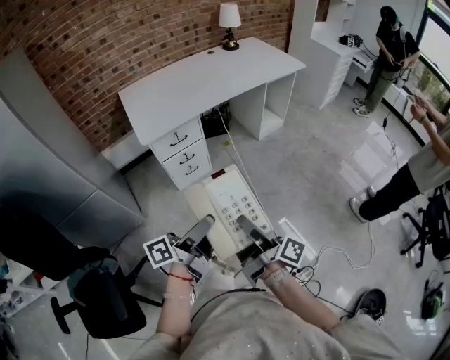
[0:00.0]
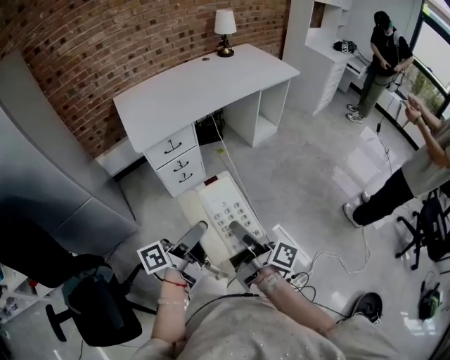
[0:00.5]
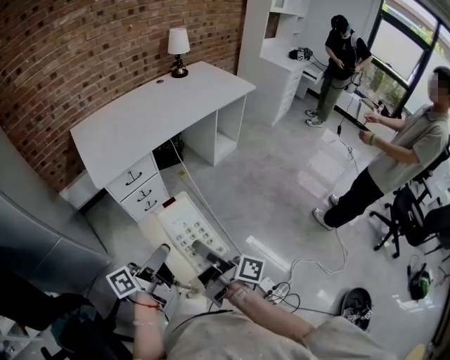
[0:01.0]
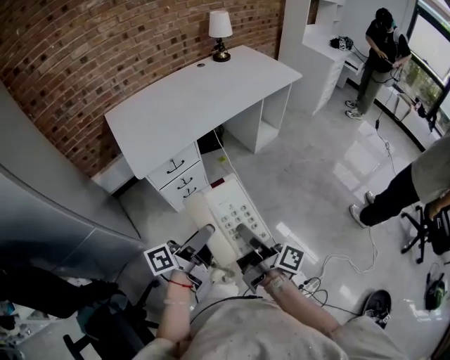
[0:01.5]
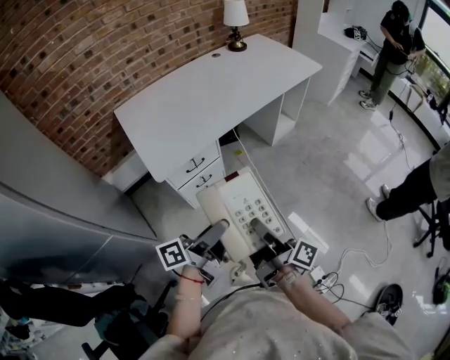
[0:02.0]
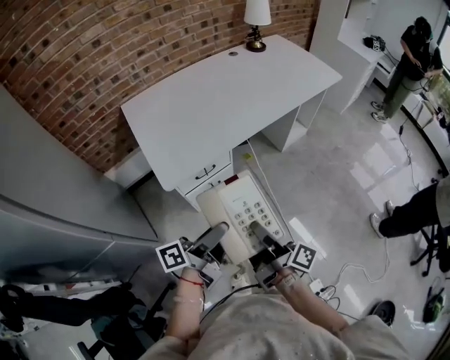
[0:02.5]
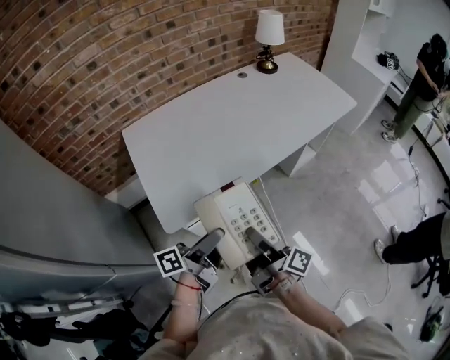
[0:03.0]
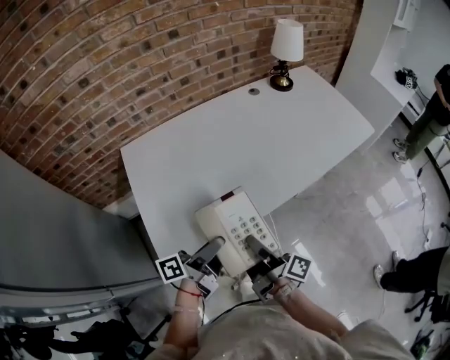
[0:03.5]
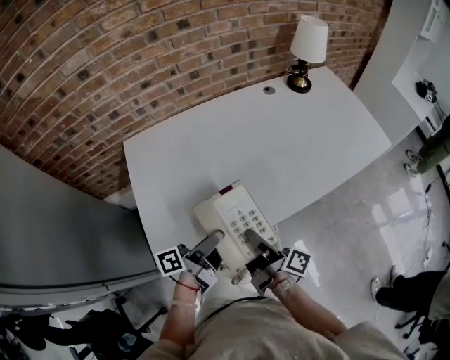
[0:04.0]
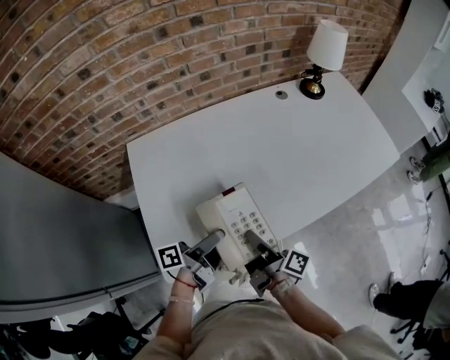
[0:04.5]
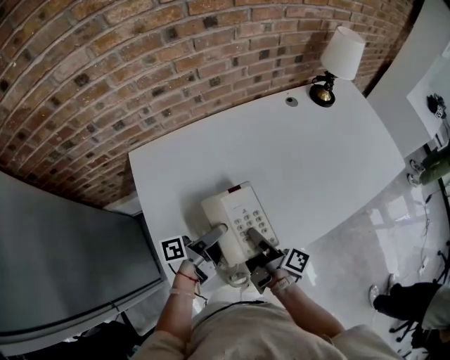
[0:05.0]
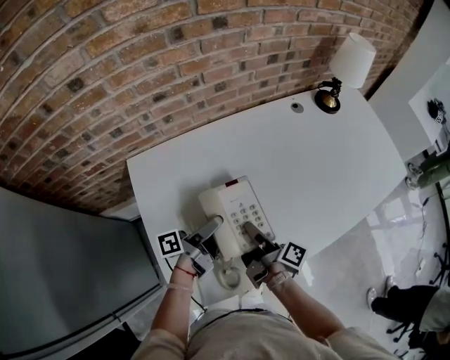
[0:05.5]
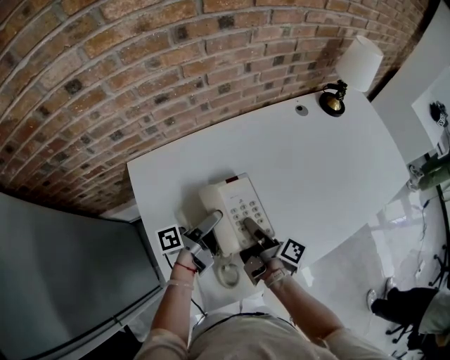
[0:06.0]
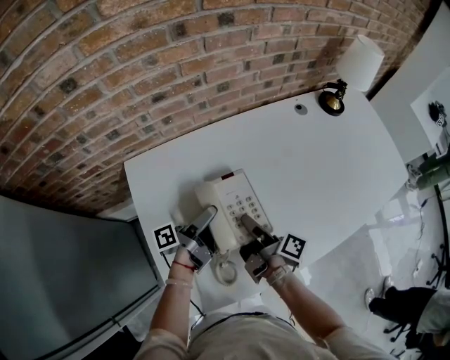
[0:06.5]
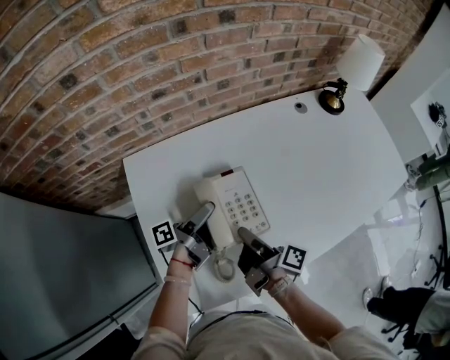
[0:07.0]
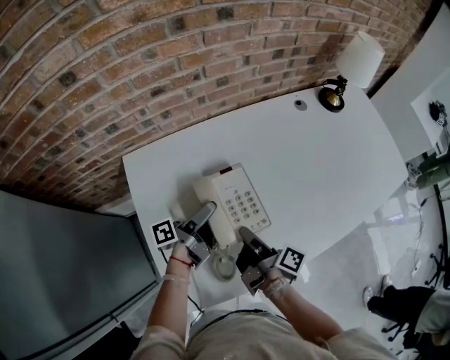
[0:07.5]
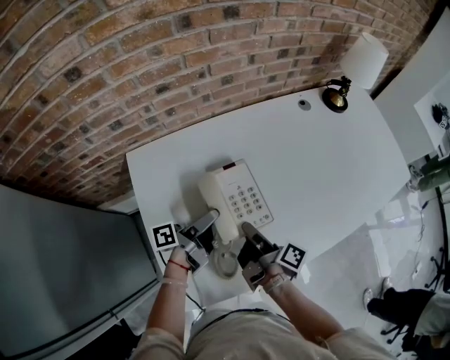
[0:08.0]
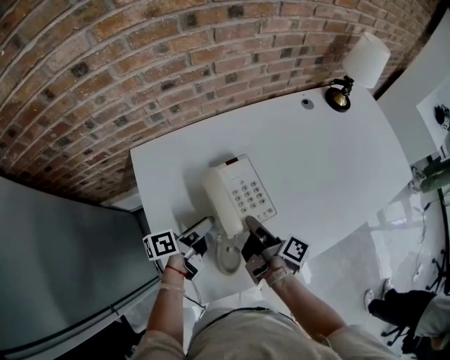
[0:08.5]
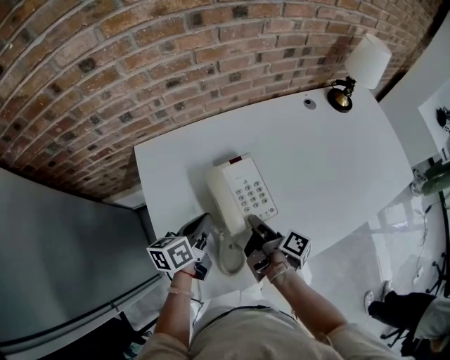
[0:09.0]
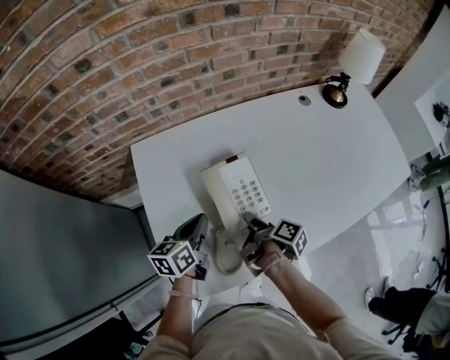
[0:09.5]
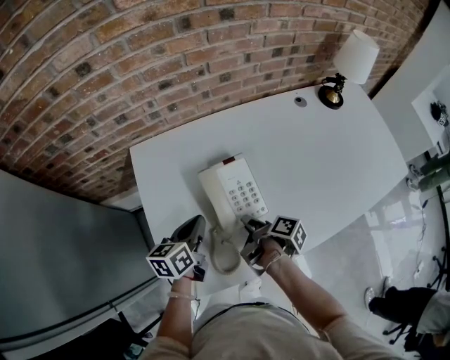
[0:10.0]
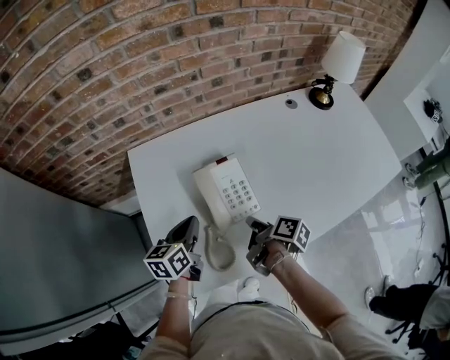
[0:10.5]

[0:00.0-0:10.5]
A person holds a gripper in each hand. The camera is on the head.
0:00.0 to 0:02.0: The left gripper moves roughly 20 cm.
0:02.0 to 0:04.0: The left gripper changes place by approximately 40 cm.
0:04.0 to 0:06.5: The left gripper moves roughly 25 cm.
0:06.5 to 0:08.5: The left gripper shifts by about 5 cm, swivels approximately 20 degrees, and closes its fingers.
0:08.5 to 0:10.5: The left gripper swivels roughly 40 degrees, and closes up.

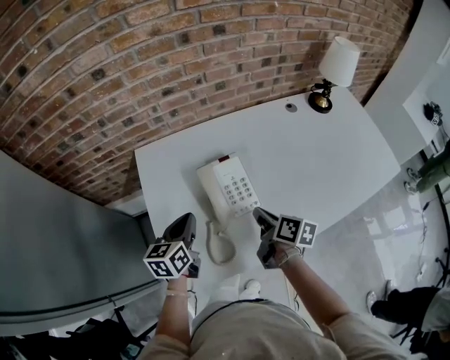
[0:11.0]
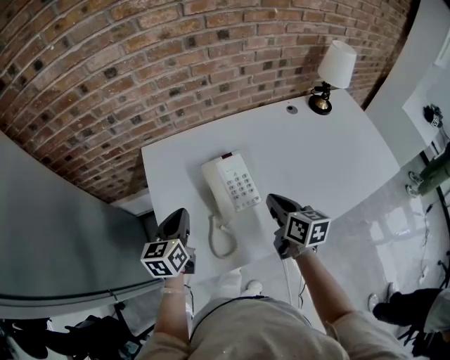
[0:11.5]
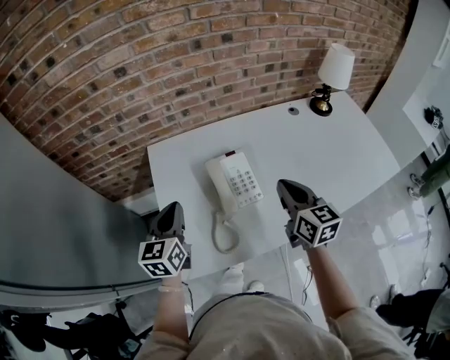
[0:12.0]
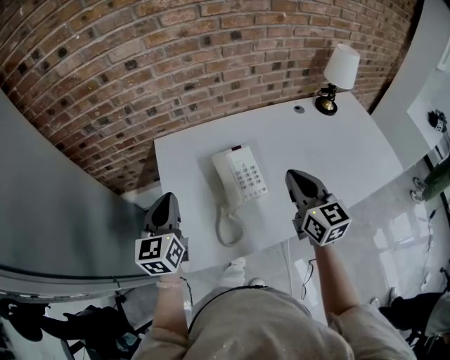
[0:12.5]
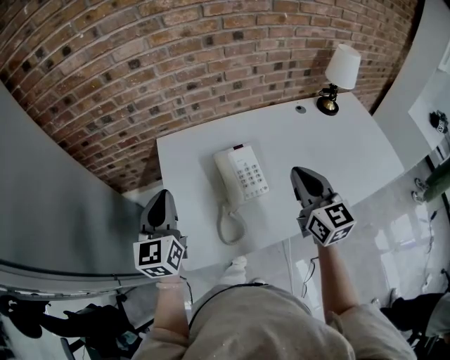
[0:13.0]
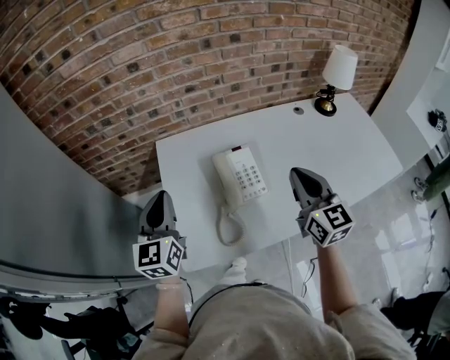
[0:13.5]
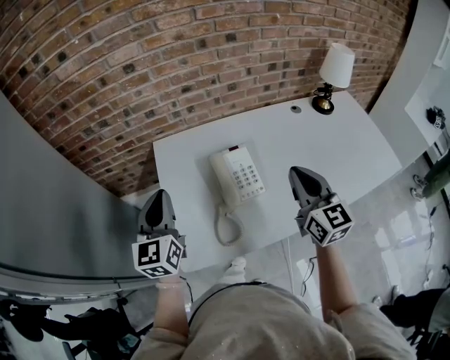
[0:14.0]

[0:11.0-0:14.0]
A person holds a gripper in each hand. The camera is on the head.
0:11.0 to 0:12.5: The left gripper heads upward, covering roughly 10 cm, and changes its angle by roughly 30 degrees.

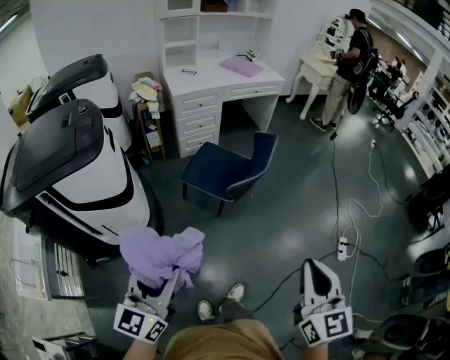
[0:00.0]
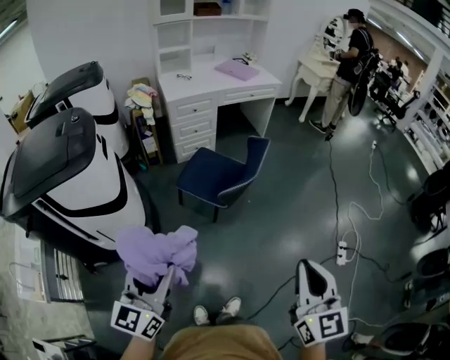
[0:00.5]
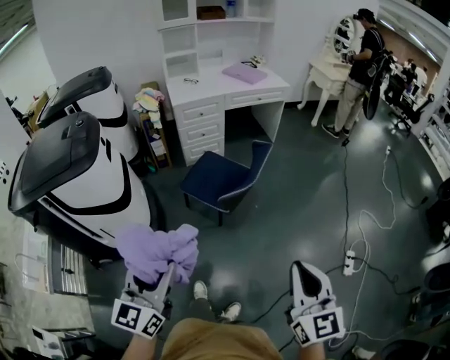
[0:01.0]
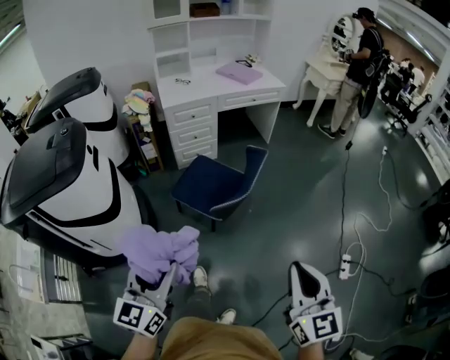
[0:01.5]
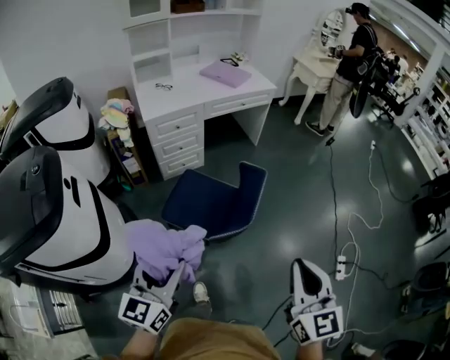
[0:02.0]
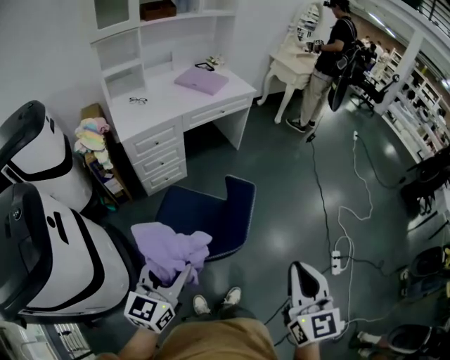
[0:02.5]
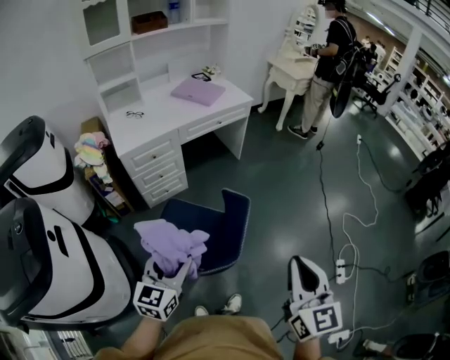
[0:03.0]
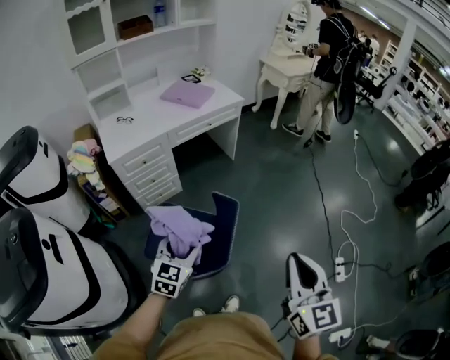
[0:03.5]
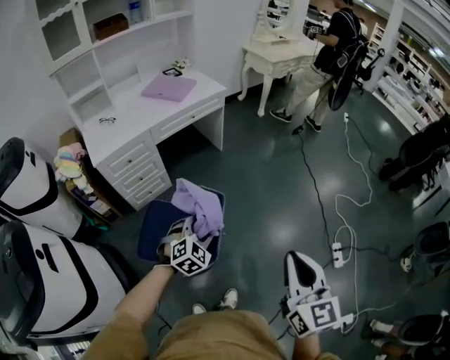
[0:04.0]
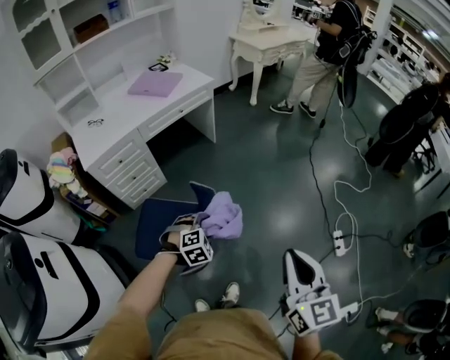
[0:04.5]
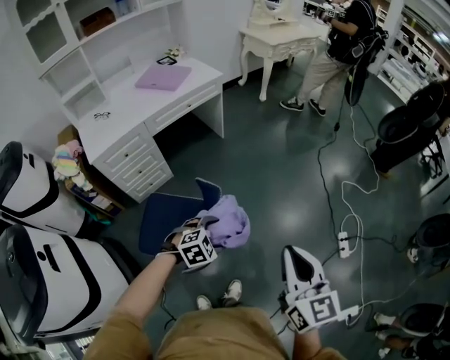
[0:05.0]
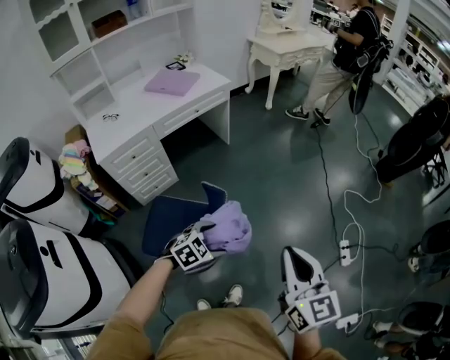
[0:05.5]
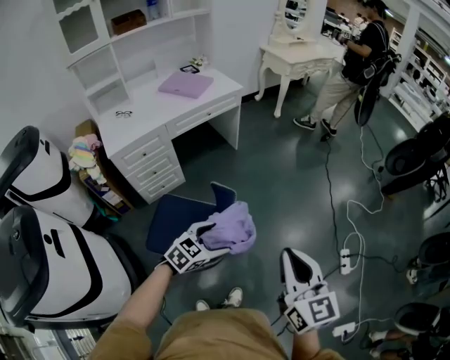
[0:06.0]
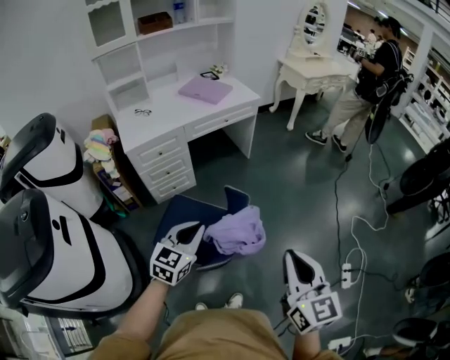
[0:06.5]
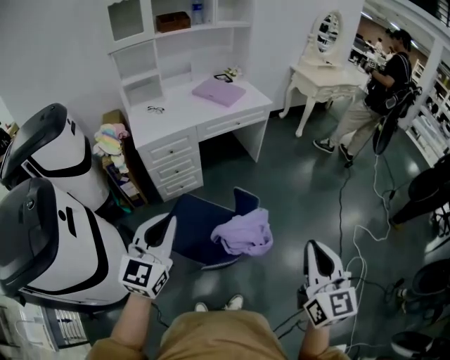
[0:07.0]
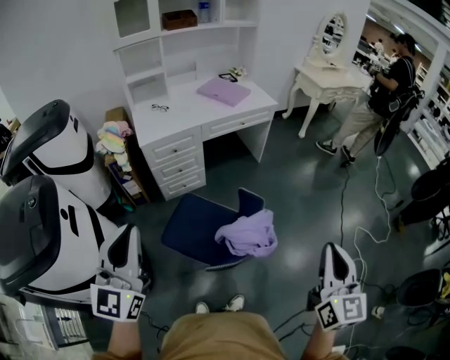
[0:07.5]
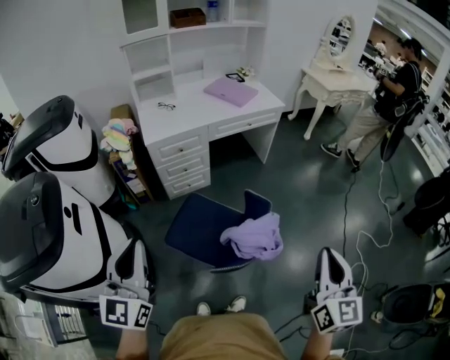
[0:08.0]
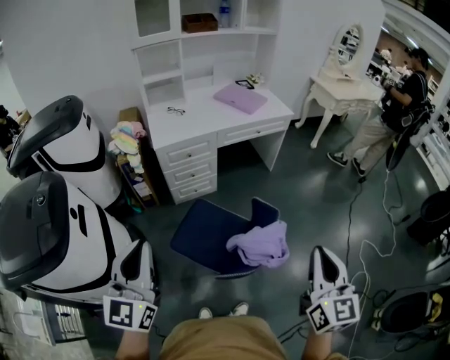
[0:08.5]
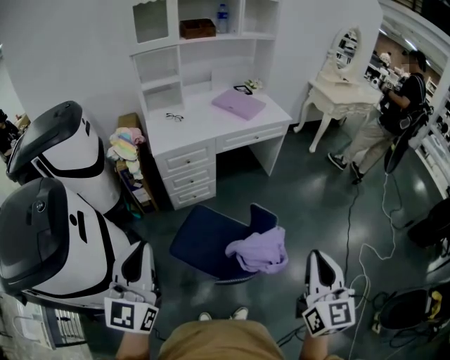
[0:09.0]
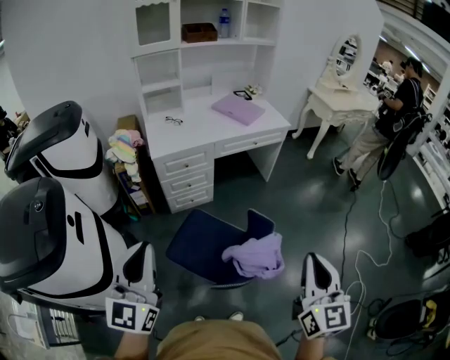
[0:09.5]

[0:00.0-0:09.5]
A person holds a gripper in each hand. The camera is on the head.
0:00.0 to 0:02.0: Both grippers travel together forward, some 35 cm.
0:02.0 to 0:04.0: The right gripper shifts approximately 20 cm forward and to the right. Meanwhile the left gripper is displaced forward, to the right and downward by roughly 40 cm, and tips its fingers downward by roughly 30 degrees.
0:04.0 to 0:05.5: The left gripper is displaced to the right and downward by some 10 cm, changes its angle by about 30 degrees, and opens.
0:05.5 to 0:07.5: The right gripper travels upward by some 10 cm. Meanwhile the left gripper goes approximately 35 cm upward, points its fingers approximately 60 degrees further upward, and closes.
0:07.5 to 0:09.5: The right gripper moves to the left and forward, about 10 cm.

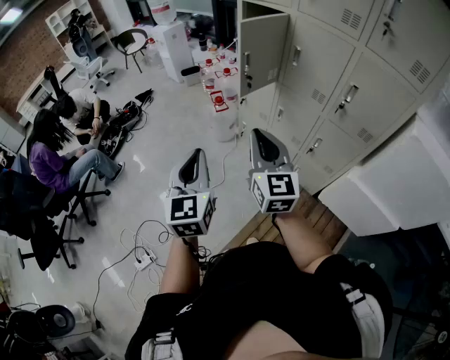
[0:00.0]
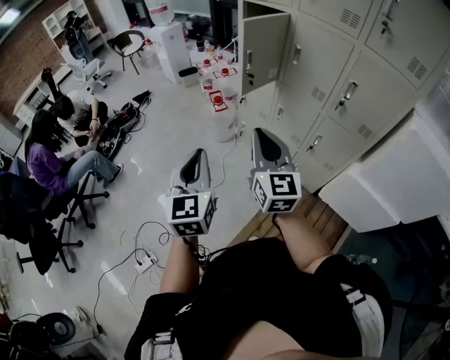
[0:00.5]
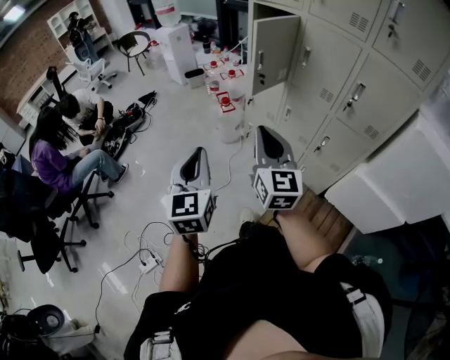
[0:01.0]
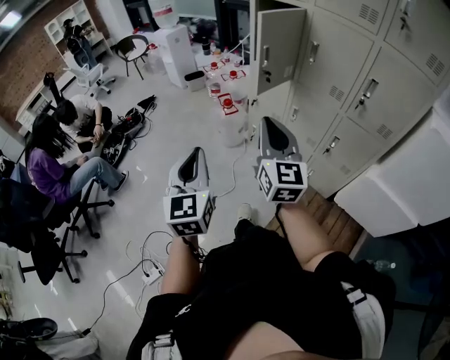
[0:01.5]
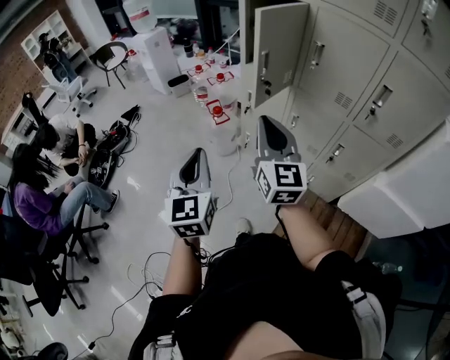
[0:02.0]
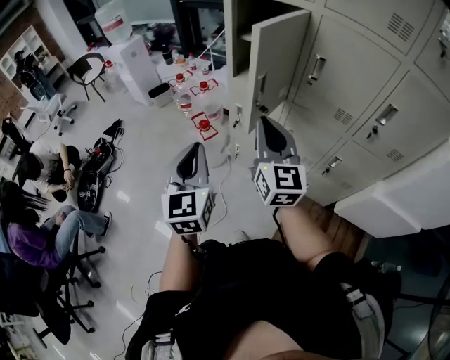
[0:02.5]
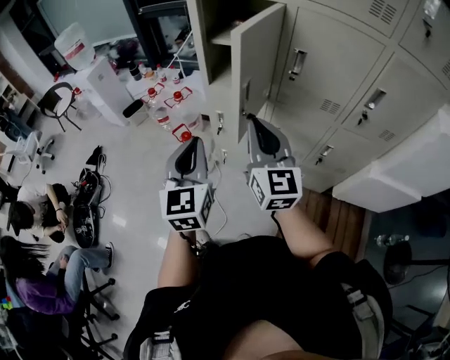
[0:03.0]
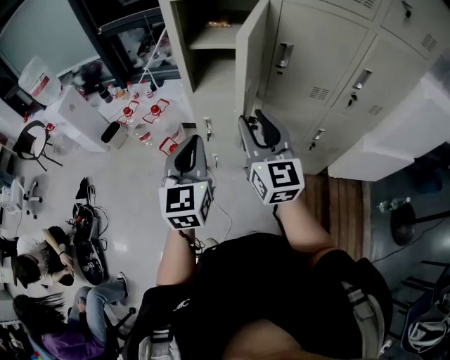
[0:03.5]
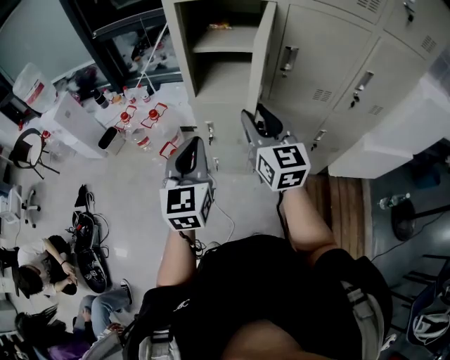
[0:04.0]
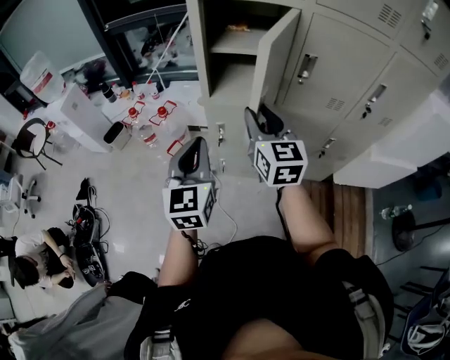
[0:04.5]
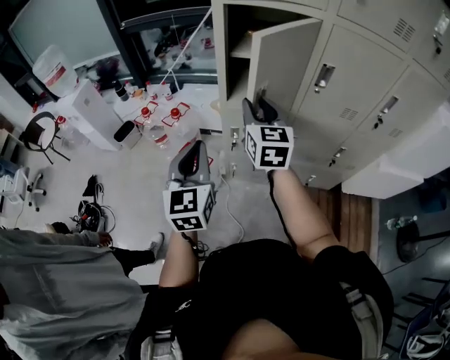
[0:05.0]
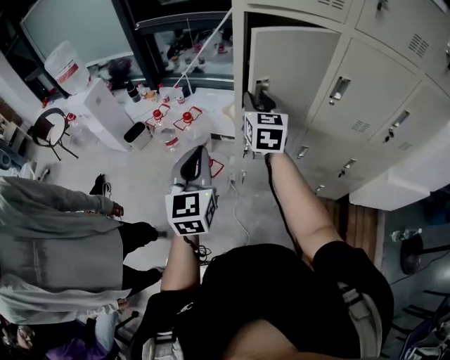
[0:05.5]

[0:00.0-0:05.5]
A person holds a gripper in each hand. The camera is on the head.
0:00.0 to 0:02.0: The left gripper is displaced forward, downward and to the left by roughly 25 cm, while the right gripper moves forward, some 20 cm.
0:02.0 to 0:03.5: The right gripper shifts by about 20 cm, changes its angle by approximately 20 degrees, and opens up; the left gripper changes place by some 30 cm, and changes its angle by about 30 degrees.
0:03.5 to 0:05.5: The right gripper shifts approximately 25 cm forward and to the left; the left gripper shifts approximately 15 cm to the left.
